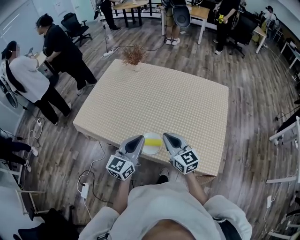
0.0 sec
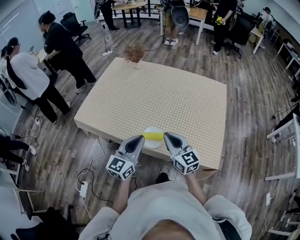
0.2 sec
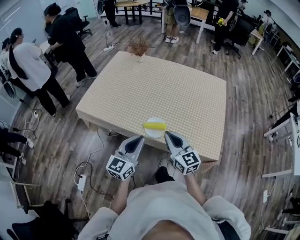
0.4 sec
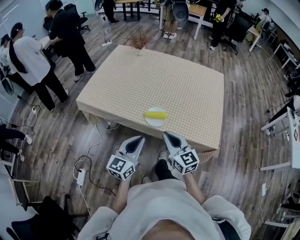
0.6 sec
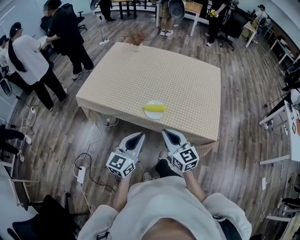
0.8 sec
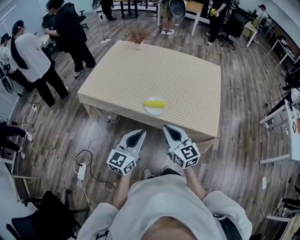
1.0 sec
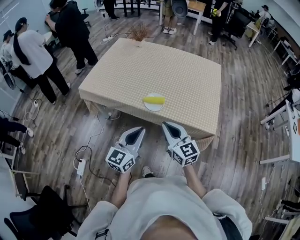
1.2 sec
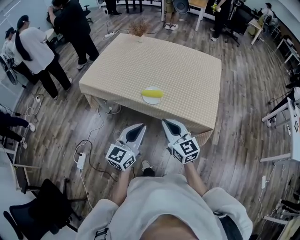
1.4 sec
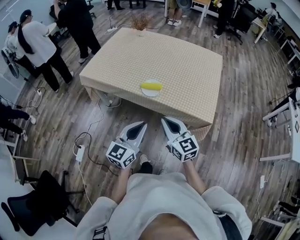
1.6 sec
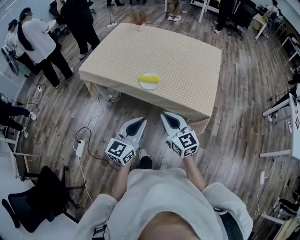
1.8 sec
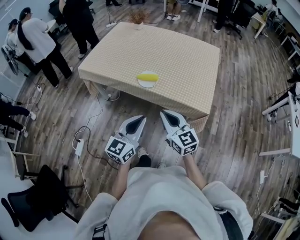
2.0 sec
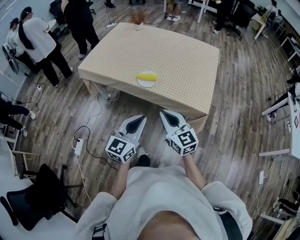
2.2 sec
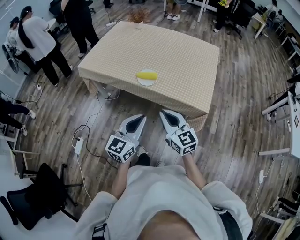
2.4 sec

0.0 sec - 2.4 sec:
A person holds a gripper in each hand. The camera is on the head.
0.0 sec - 1.2 sec: The two grippers go about 25 cm backward.
1.2 sec - 2.4 sec: Both grippers move backward and to the right, some 10 cm.

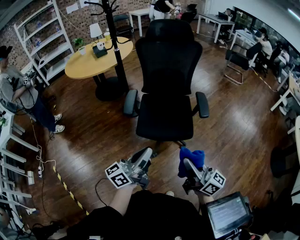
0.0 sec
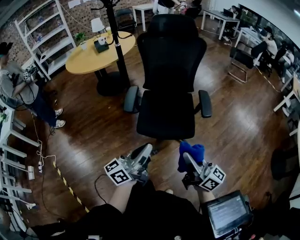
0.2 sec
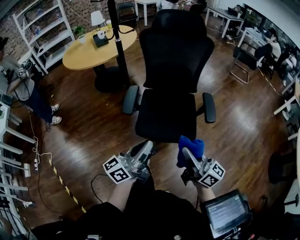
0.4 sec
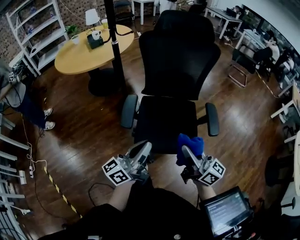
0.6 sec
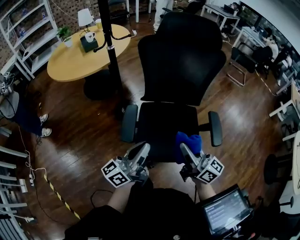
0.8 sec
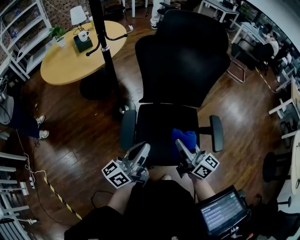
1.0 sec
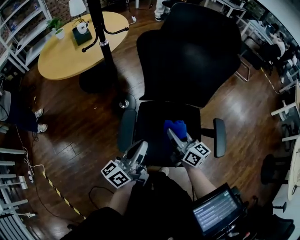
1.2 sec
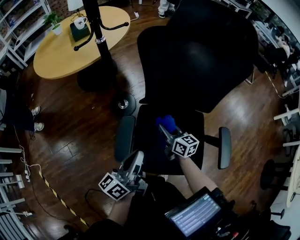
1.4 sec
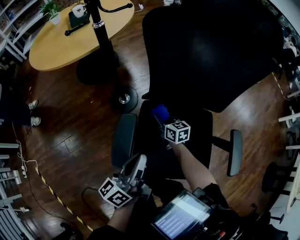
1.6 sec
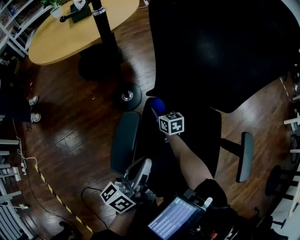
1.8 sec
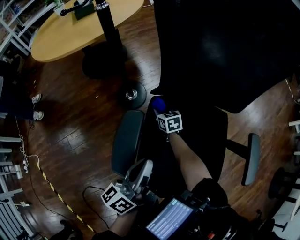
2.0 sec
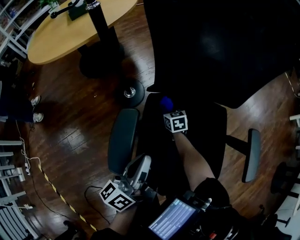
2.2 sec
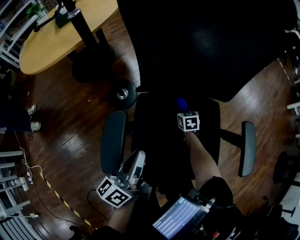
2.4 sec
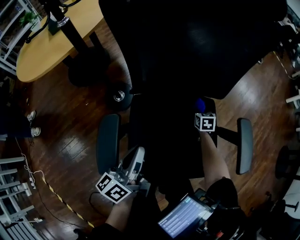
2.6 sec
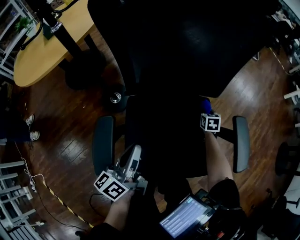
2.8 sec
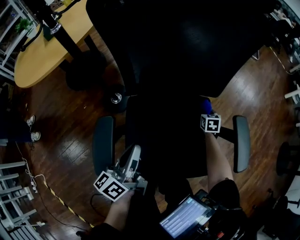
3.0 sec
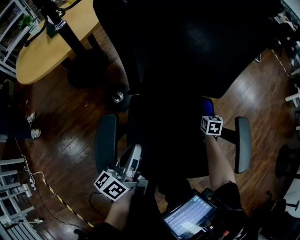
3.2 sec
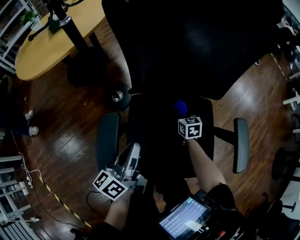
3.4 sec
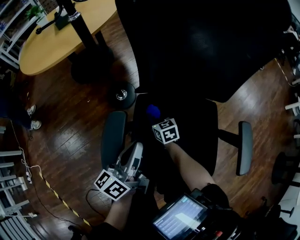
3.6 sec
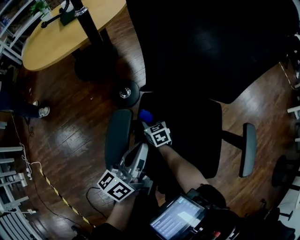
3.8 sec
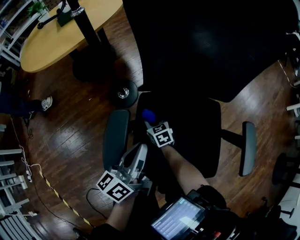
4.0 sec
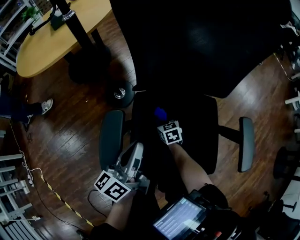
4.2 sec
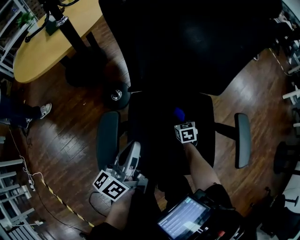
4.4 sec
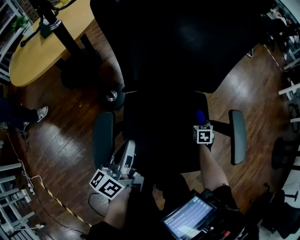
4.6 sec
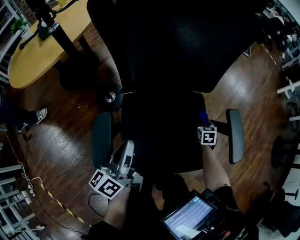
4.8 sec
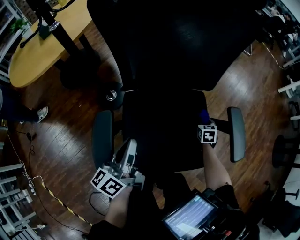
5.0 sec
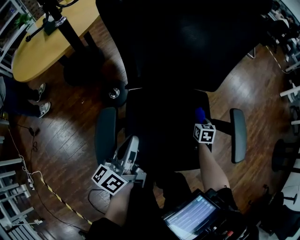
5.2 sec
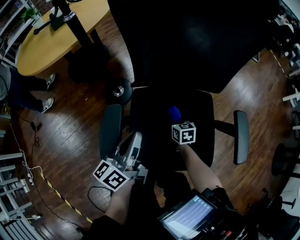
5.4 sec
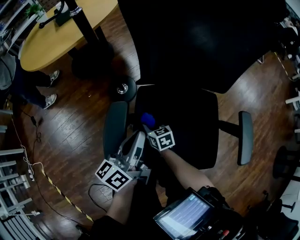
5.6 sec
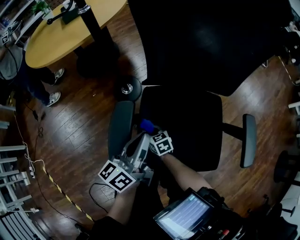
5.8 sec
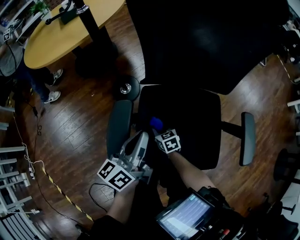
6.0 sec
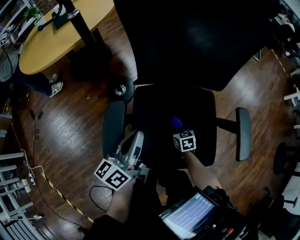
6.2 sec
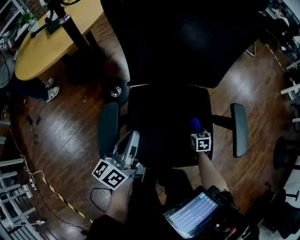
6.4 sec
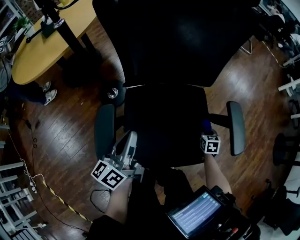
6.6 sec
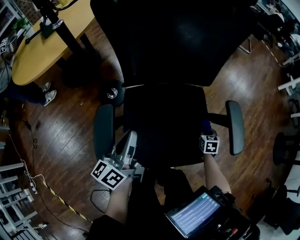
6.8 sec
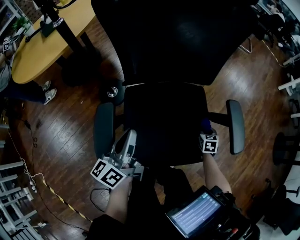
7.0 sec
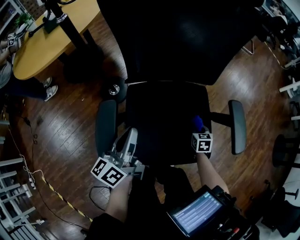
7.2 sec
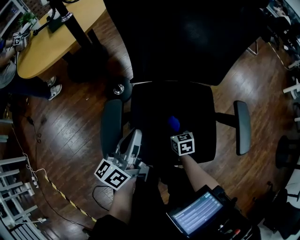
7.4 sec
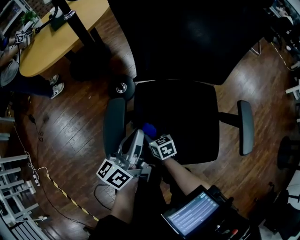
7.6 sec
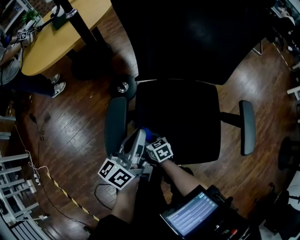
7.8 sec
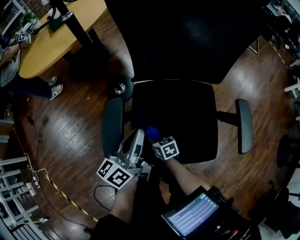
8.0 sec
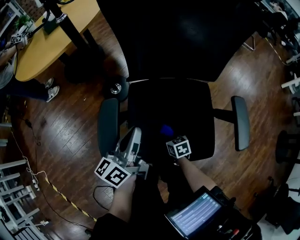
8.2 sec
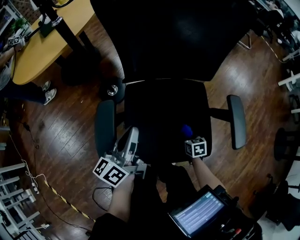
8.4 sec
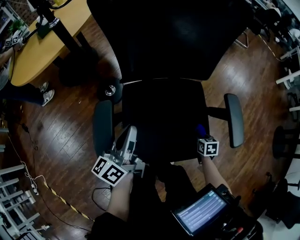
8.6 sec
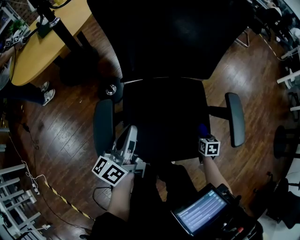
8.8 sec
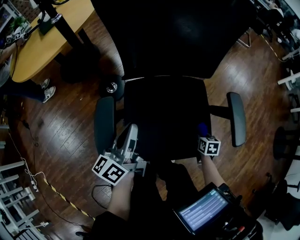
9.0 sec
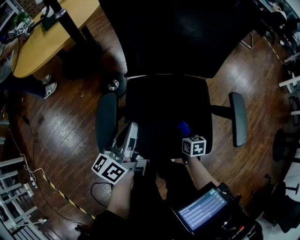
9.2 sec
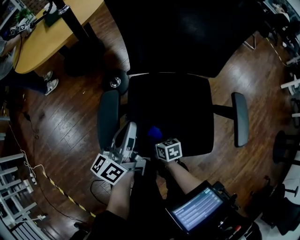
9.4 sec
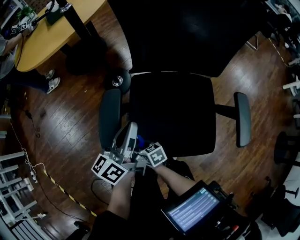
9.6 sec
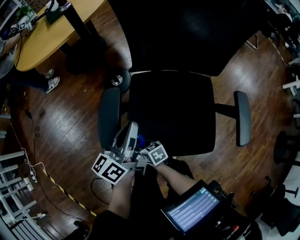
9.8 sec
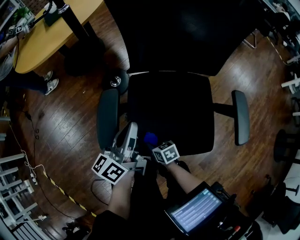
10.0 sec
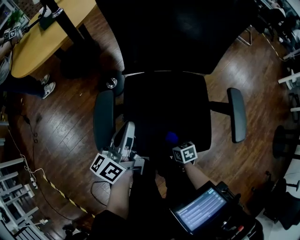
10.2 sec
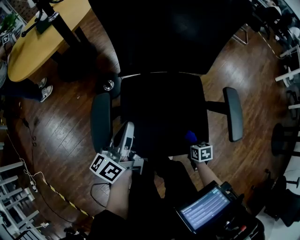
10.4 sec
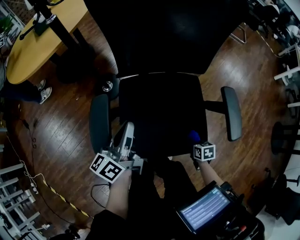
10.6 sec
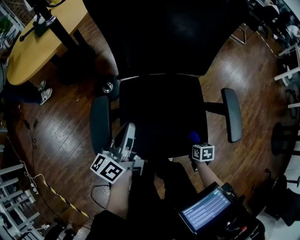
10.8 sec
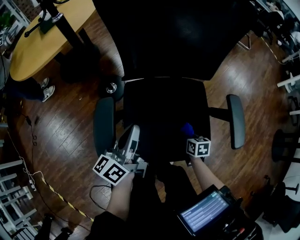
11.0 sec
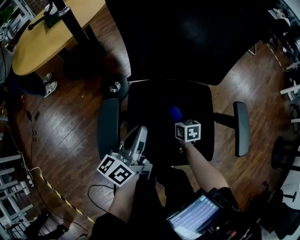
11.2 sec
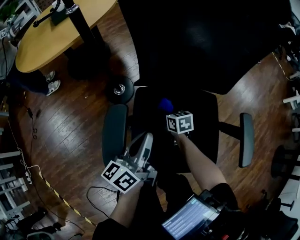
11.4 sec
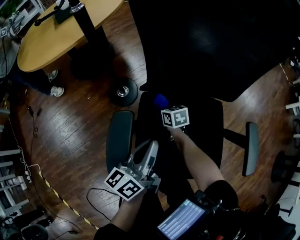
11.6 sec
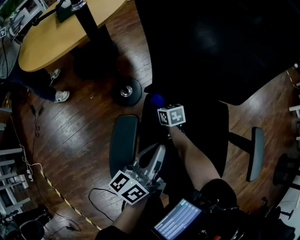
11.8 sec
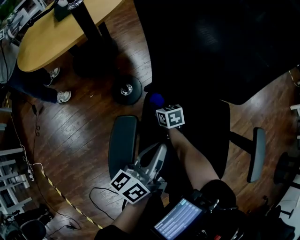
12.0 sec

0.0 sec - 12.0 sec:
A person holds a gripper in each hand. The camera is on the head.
0.0 sec - 1.6 sec: The two grippers travel together, forward, some 60 cm. The right gripper is displaced downward by some 35 cm, and tilts its fingers roughly 40 degrees downward; the left gripper rotates approximately 20 degrees.
1.6 sec - 3.0 sec: The left gripper travels downward by approximately 10 cm, while the right gripper ends up about 35 cm from where it was, and changes its angle by about 40 degrees.
4.4 sec - 6.0 sec: The right gripper moves about 20 cm, and swivels roughly 20 degrees.
7.6 sec - 9.0 sec: The right gripper goes some 35 cm to the right, and changes its angle by roughly 40 degrees.
10.4 sec - 12.0 sec: The left gripper moves about 5 cm. Meanwhile the right gripper goes some 40 cm forward and to the left, and swivels roughly 30 degrees.

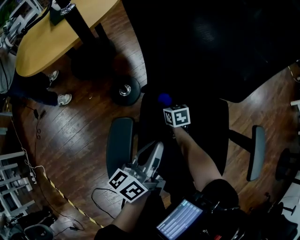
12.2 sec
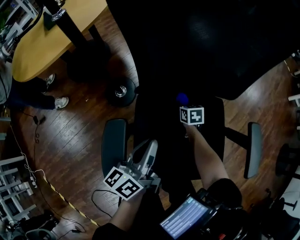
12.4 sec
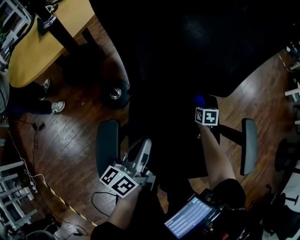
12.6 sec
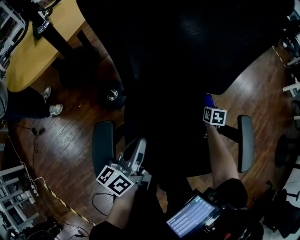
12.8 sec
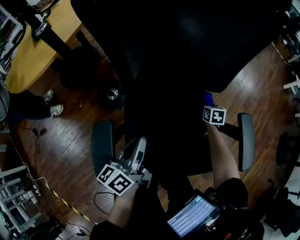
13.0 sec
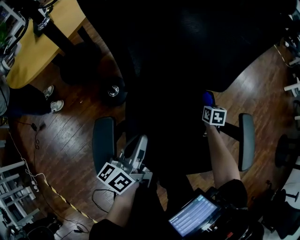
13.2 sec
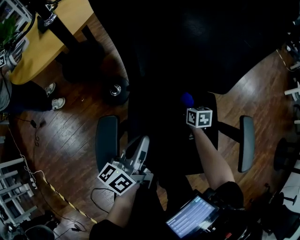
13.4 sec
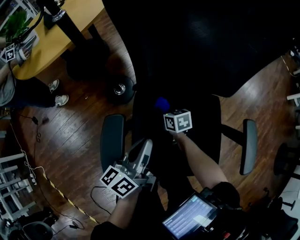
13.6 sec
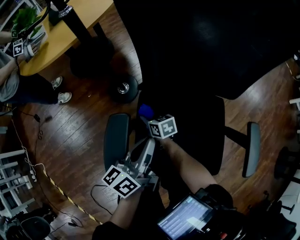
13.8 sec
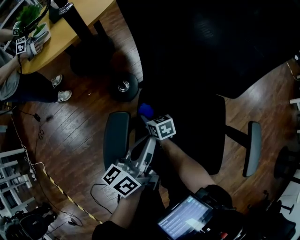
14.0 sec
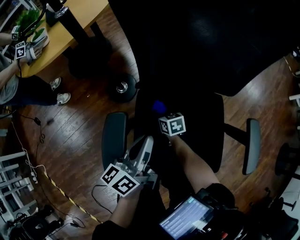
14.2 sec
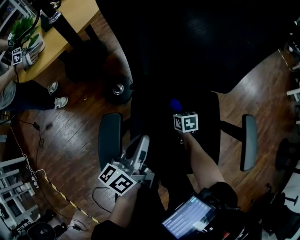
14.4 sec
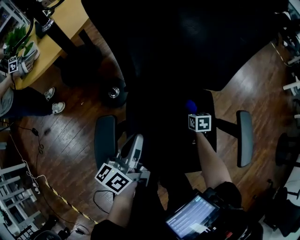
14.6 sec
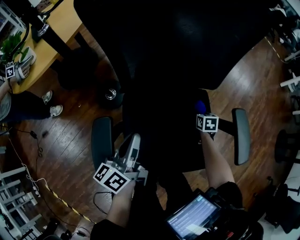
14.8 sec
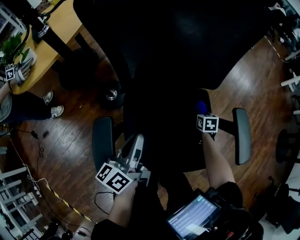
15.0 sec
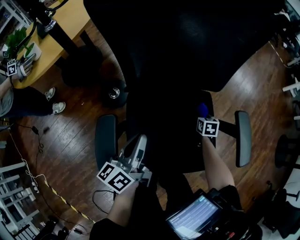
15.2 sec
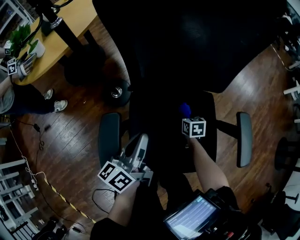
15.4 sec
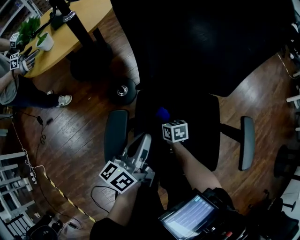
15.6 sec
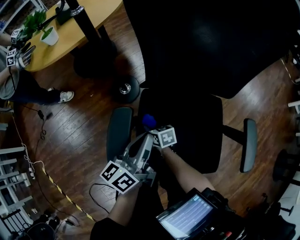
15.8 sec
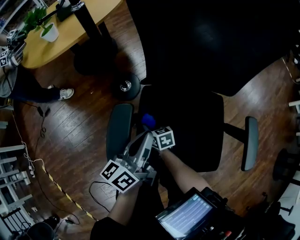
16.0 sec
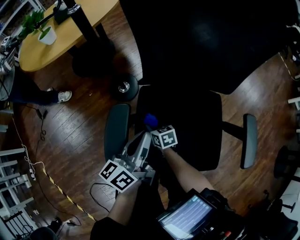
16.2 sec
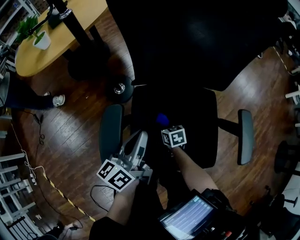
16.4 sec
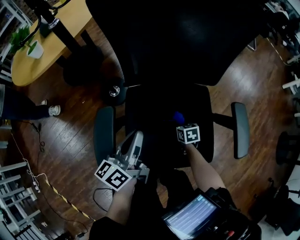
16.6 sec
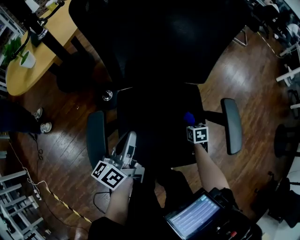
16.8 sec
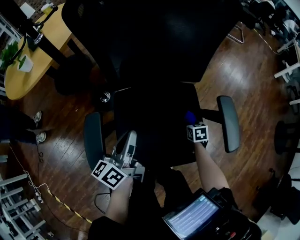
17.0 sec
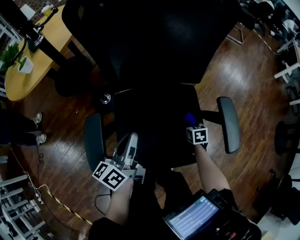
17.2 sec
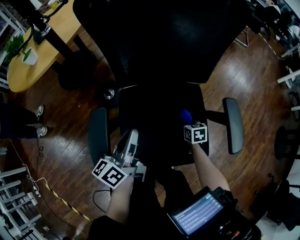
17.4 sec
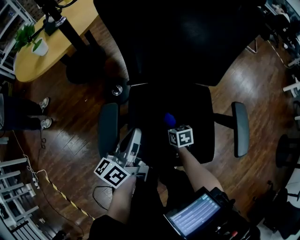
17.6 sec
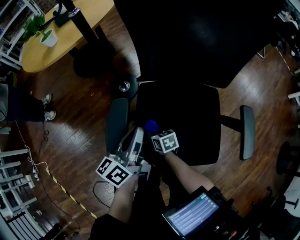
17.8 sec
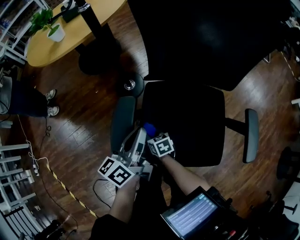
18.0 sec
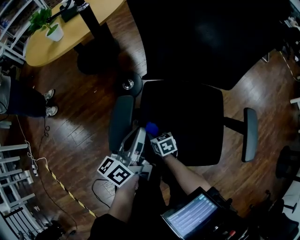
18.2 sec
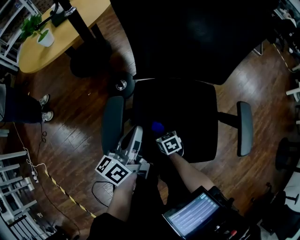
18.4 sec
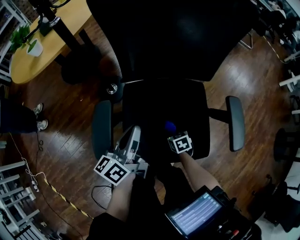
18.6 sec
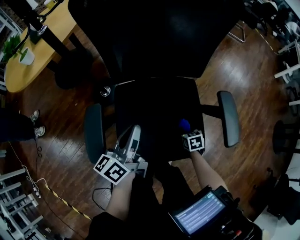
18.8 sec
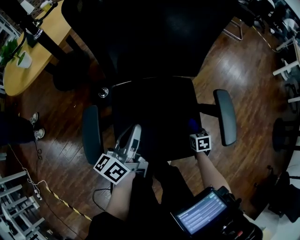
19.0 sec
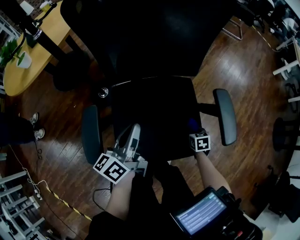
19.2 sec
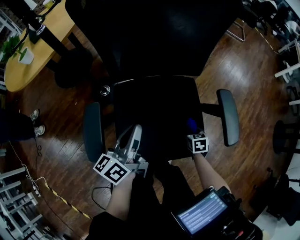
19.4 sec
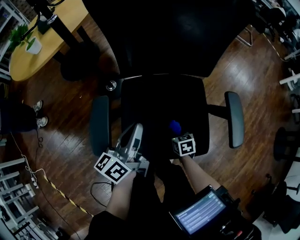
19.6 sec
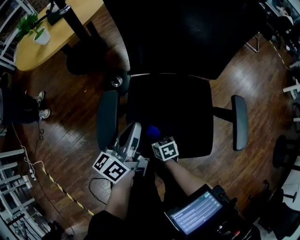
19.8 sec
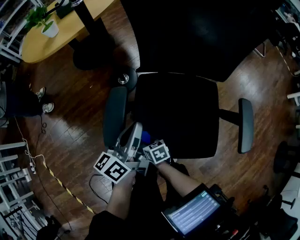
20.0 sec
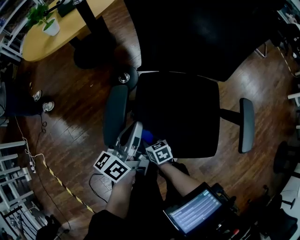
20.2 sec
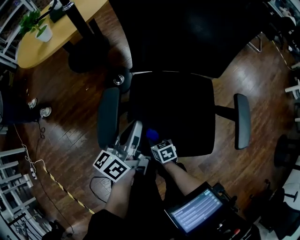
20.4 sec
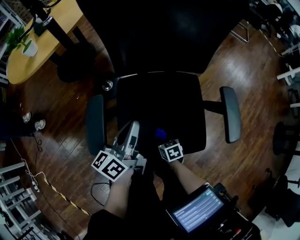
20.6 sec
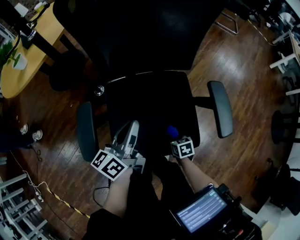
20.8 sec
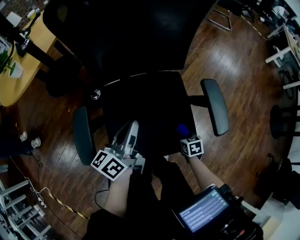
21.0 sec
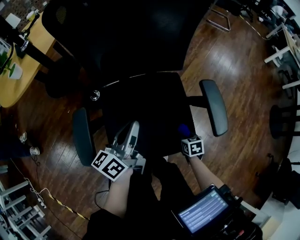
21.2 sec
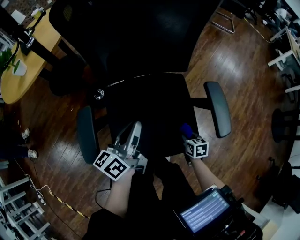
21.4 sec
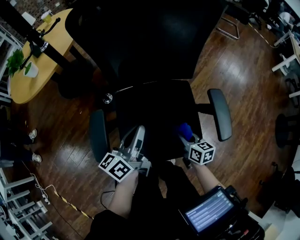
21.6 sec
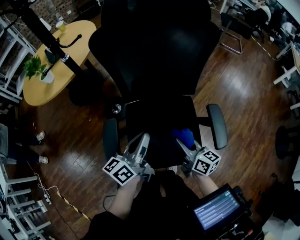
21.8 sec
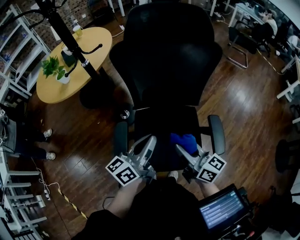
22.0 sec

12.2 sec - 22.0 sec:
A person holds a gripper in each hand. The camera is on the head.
12.2 sec - 13.6 sec: The right gripper travels to the right and back again, some 30 cm each way.
13.6 sec - 15.0 sec: The right gripper shifts by about 30 cm, and swivels about 30 degrees.
15.0 sec - 16.4 sec: The right gripper shifts by some 30 cm, and swivels some 30 degrees.
17.8 sec - 19.2 sec: The right gripper shifts by approximately 35 cm, and rotates some 30 degrees; the left gripper moves approximately 10 cm.
19.2 sec - 20.6 sec: The right gripper changes its angle by approximately 20 degrees.
20.6 sec - 22.0 sec: The left gripper is displaced upward by about 20 cm, while the right gripper travels upward by some 50 cm, and angles its fingers upward, by roughly 60 degrees.
